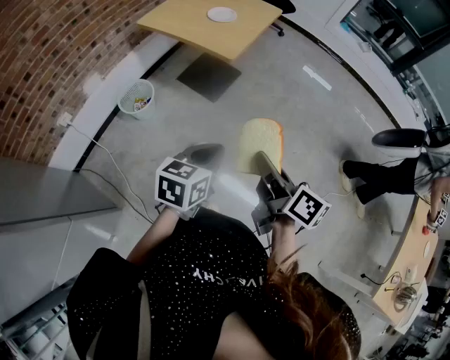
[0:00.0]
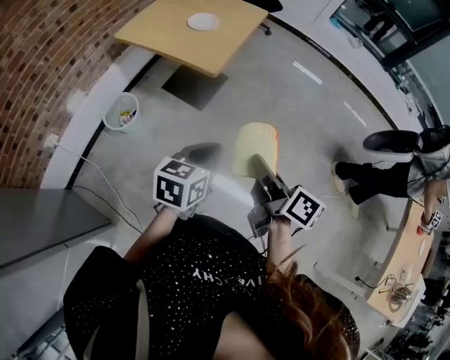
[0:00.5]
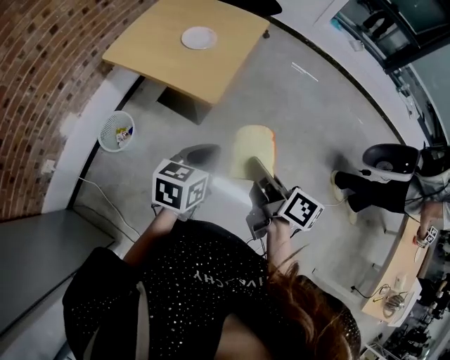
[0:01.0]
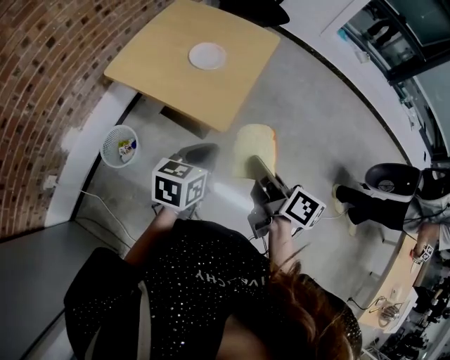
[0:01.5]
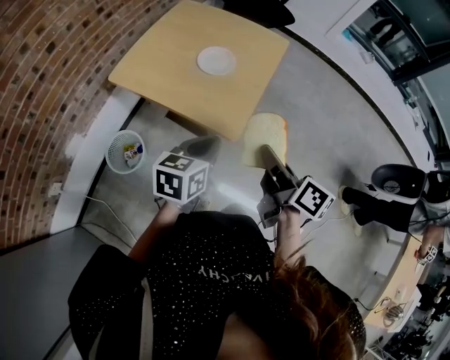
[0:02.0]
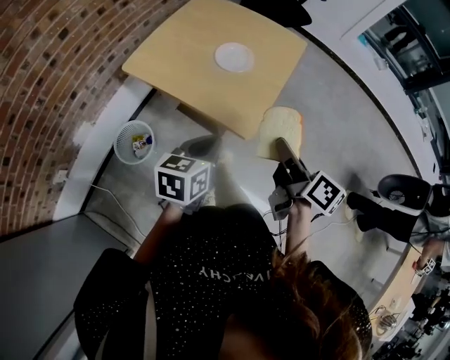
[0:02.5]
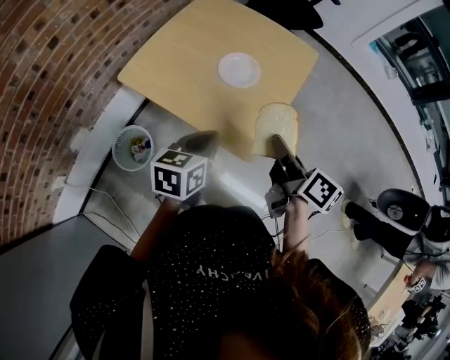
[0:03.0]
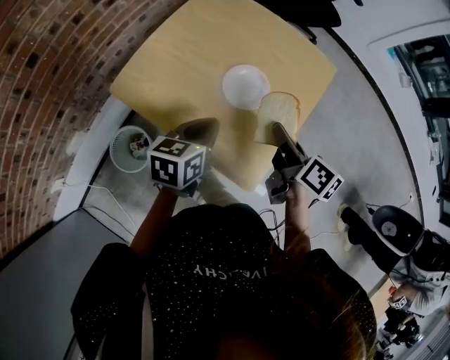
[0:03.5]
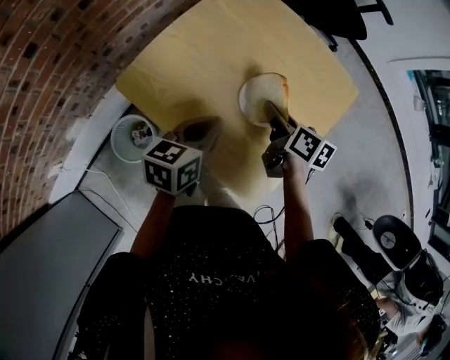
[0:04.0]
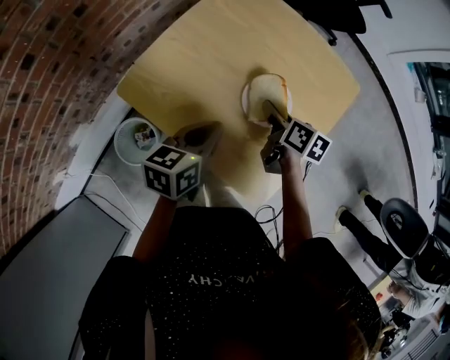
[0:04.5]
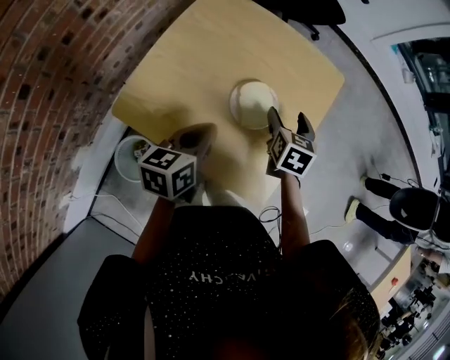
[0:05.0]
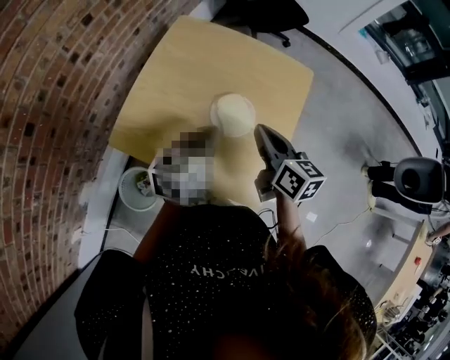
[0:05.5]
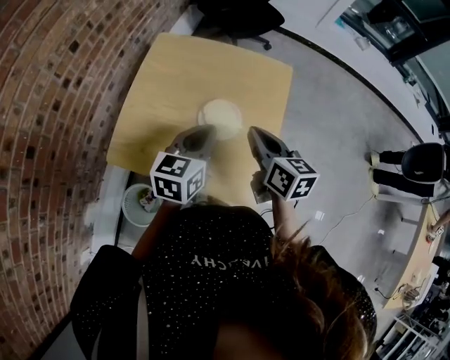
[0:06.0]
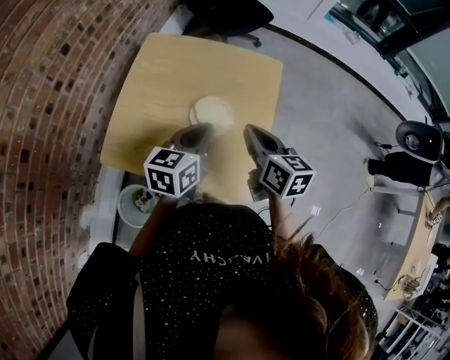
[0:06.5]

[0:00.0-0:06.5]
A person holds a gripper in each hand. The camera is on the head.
0.0 to 2.0 s: Both grippers are carried forward, roughly 40 cm.
2.0 to 4.5 s: The right gripper moves forward, downward and to the left, some 50 cm, and turns by roughly 30 degrees. The left gripper heads forward and to the left, covering roughly 30 cm.
4.5 to 6.5 s: The right gripper moves upward and to the right, about 20 cm, changes its angle by approximately 30 degrees, and opens, then closes once more. Meanwhile the left gripper moves to the right, upward and forward, about 20 cm, and rotates approximately 20 degrees.

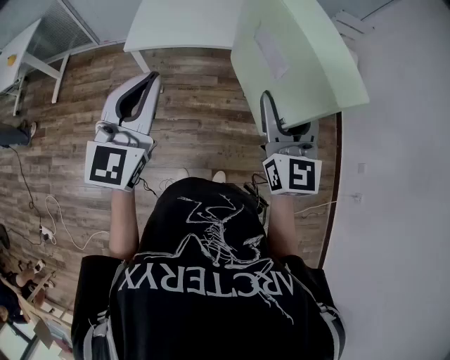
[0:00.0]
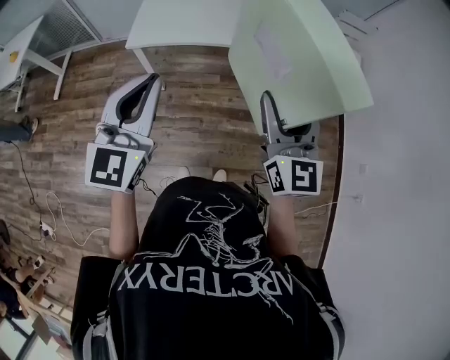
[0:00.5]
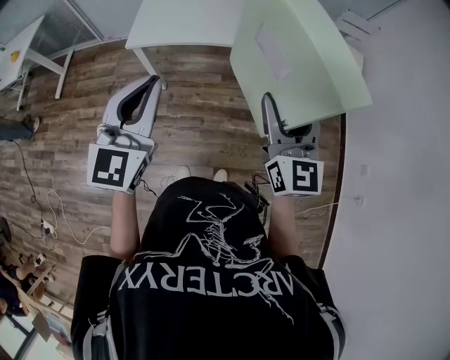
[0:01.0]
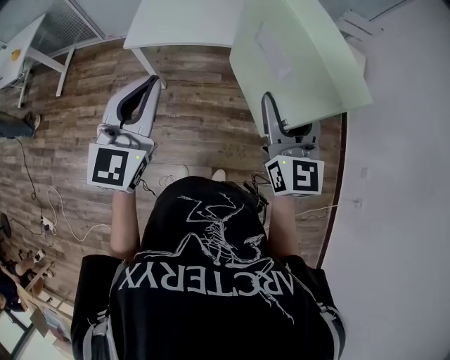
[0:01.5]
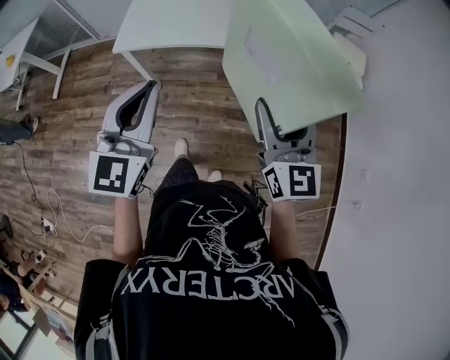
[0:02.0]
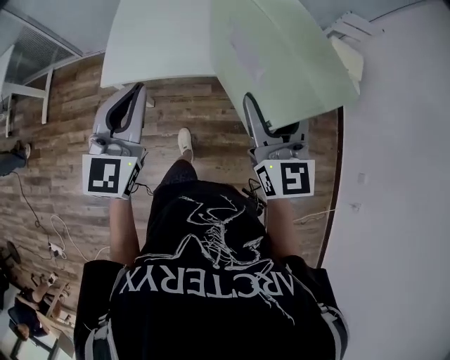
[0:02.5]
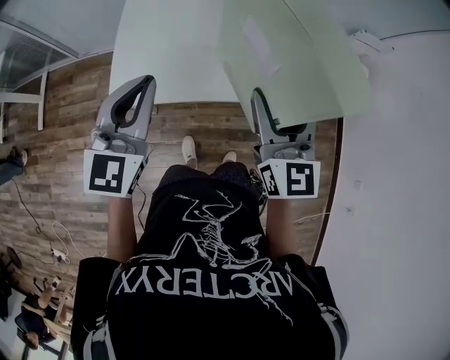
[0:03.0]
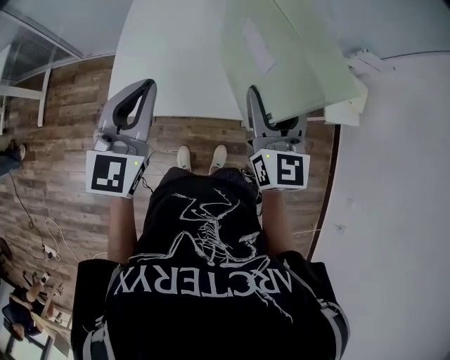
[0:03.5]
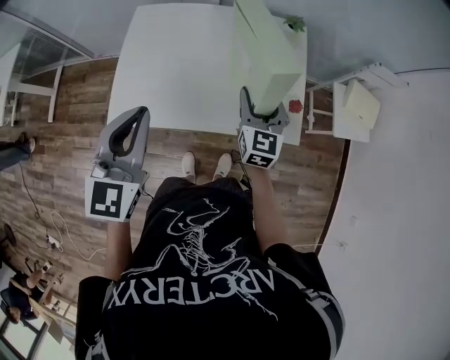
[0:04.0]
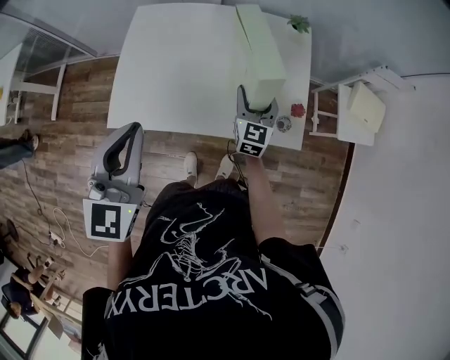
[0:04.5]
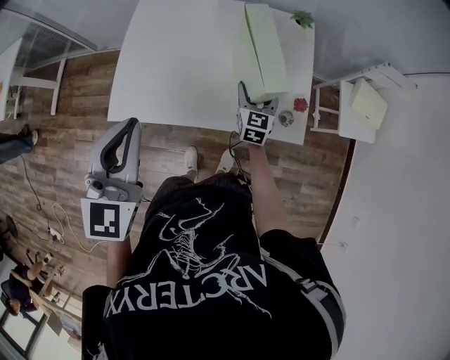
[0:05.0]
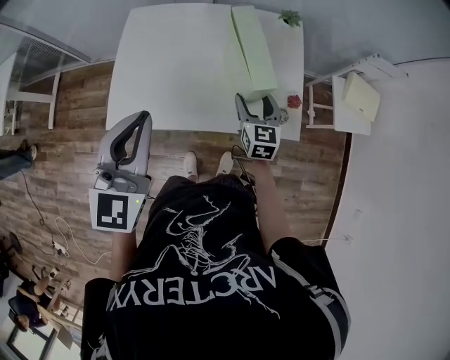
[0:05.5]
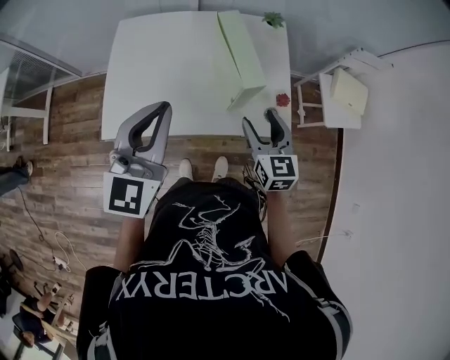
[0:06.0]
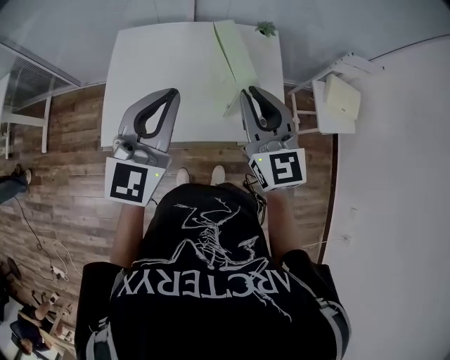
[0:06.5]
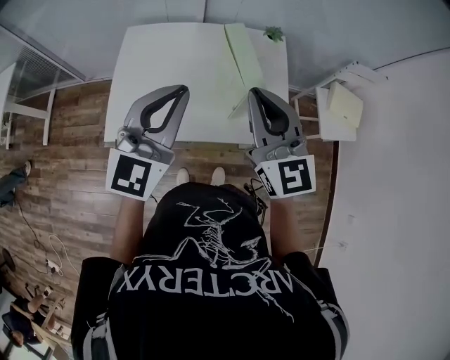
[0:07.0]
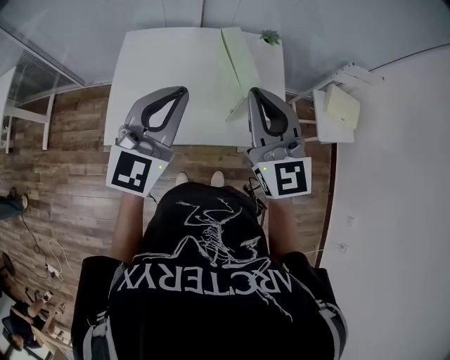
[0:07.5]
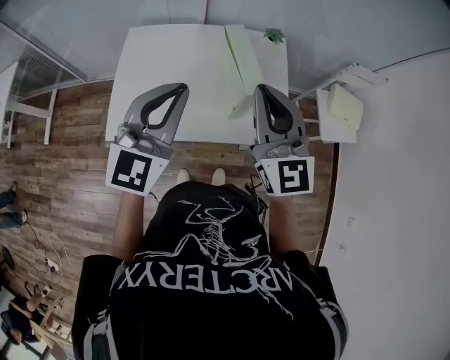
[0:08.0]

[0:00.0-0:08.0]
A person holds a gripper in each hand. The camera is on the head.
0.0 to 2.0 s: Both grippers move to the right, about 5 cm.
2.0 to 4.0 s: The two grippers go roughly 40 cm forward.
4.0 to 6.0 s: The right gripper is displaced backward by about 10 cm, and reaches approximately 15 cm downward, then returns; the left gripper heads to the right, covering approximately 5 cm.
6.0 to 8.0 s: The right gripper shifts roughly 20 cm upward, turns by roughly 30 degrees, and closes.

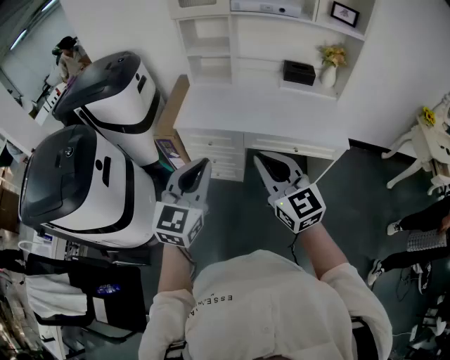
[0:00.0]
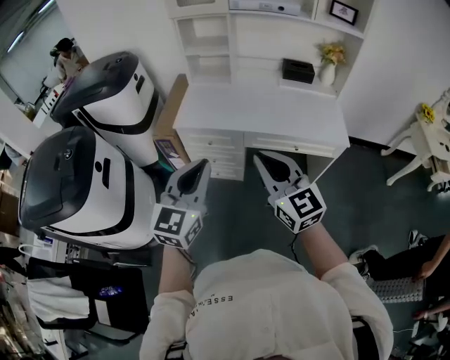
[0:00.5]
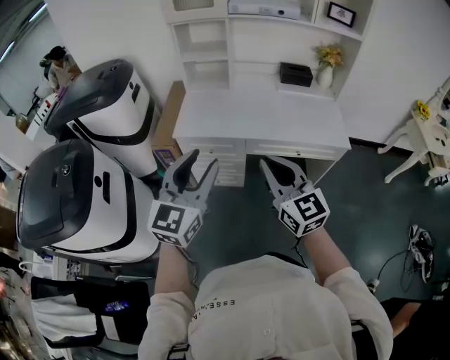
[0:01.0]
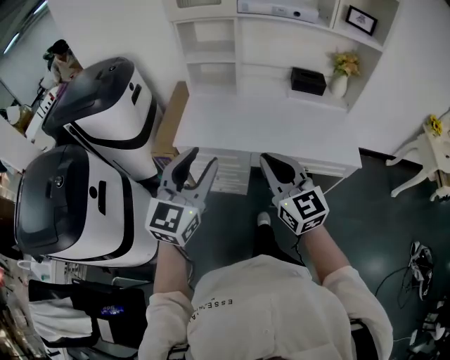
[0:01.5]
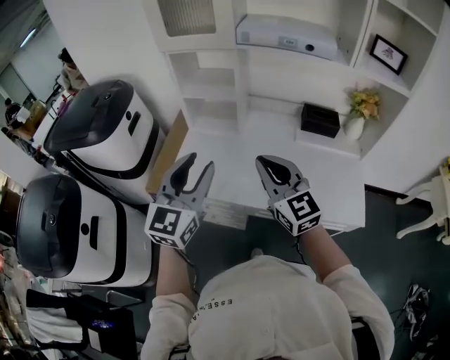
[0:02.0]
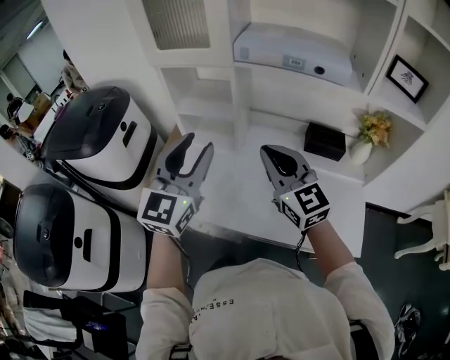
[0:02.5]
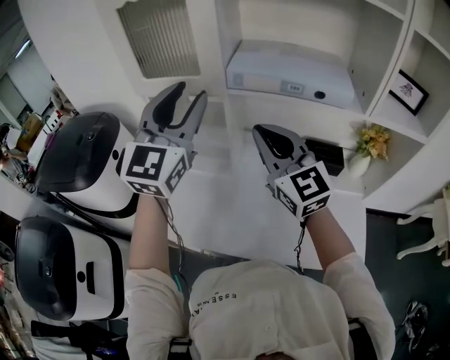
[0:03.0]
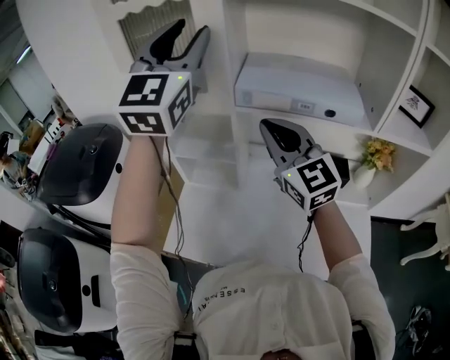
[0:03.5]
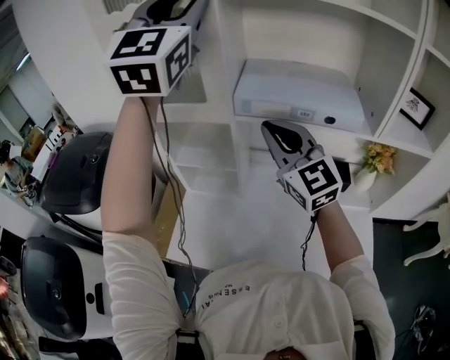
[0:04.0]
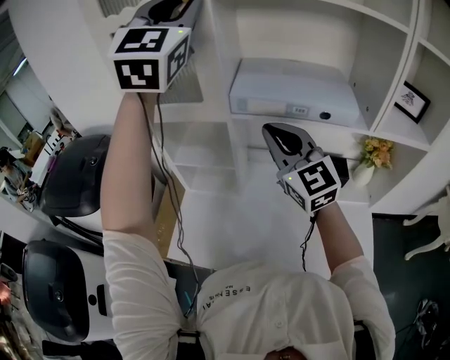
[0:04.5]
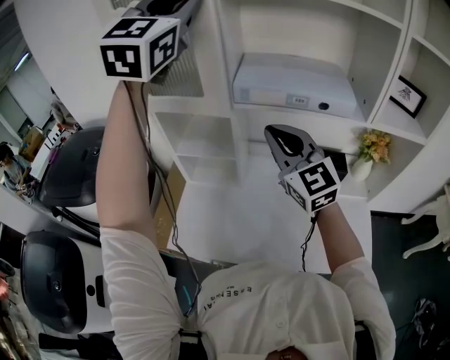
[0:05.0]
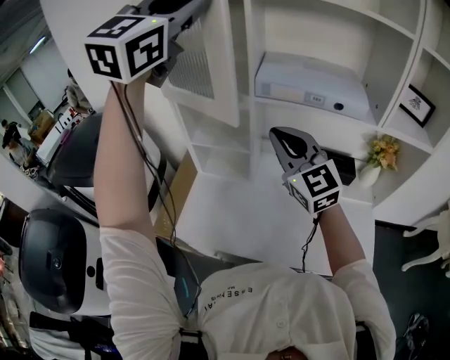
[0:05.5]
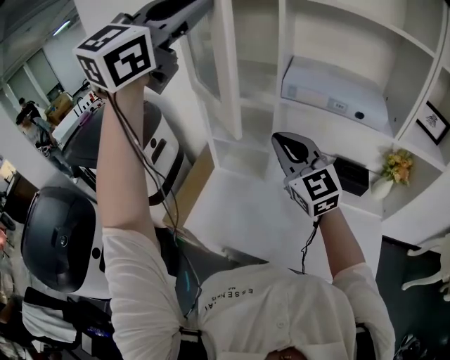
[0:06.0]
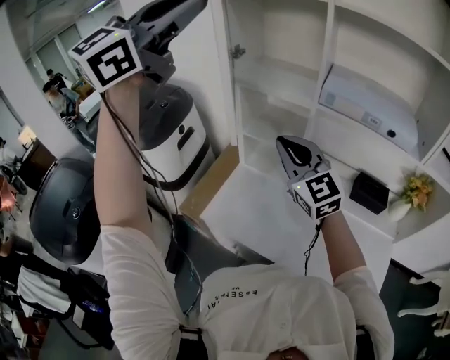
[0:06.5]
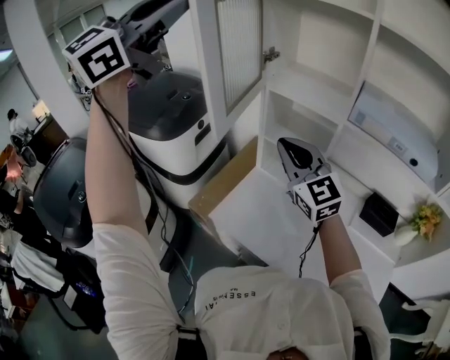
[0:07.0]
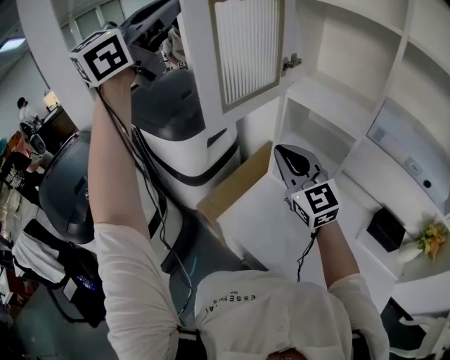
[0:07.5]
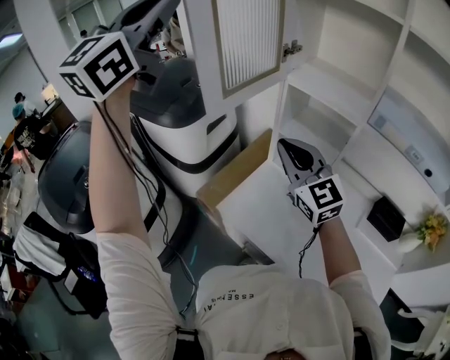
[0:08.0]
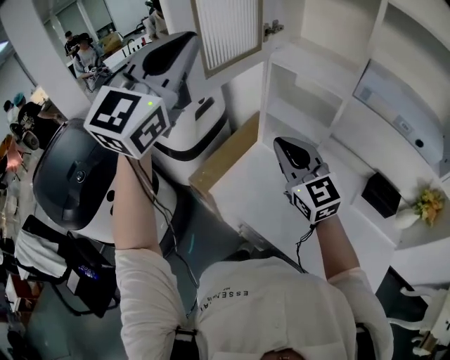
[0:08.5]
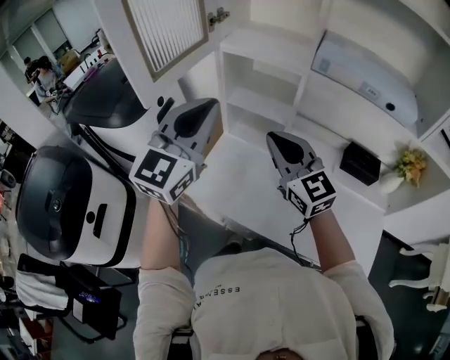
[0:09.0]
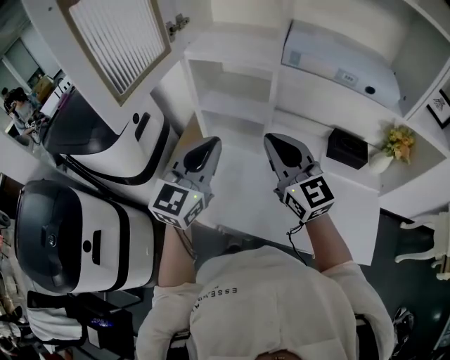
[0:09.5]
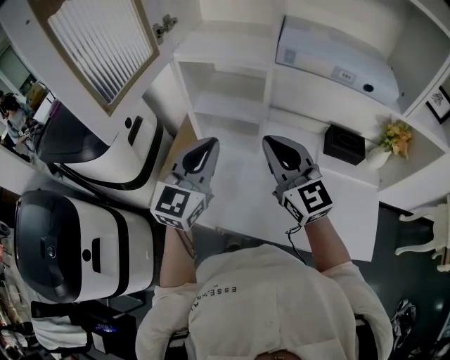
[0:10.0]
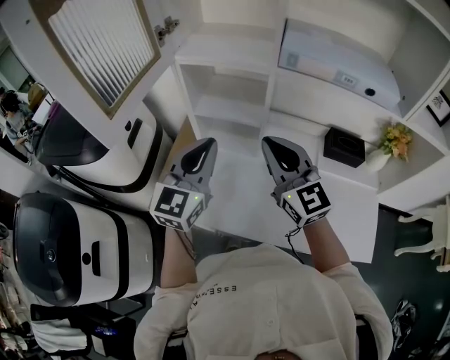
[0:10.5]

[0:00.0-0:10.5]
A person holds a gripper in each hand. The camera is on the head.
0.0 to 2.0 s: Both grippers travel together forward, approximately 35 cm. The left gripper opens up.
2.0 to 4.0 s: The right gripper moves forward and upward, some 35 cm, while the left gripper shifts roughly 50 cm upward and forward, and changes its angle by approximately 30 degrees.
4.0 to 6.5 s: Both grippers move to the left and backward, roughly 20 cm.
6.5 to 8.5 s: The right gripper moves to the left and downward, about 10 cm; the left gripper shifts approximately 15 cm downward and to the left, and turns by approximately 30 degrees.
8.5 to 10.5 s: The right gripper travels to the right by about 15 cm, and swivels roughly 20 degrees. The left gripper heads downward and to the right, covering roughly 30 cm, and turns by about 30 degrees.

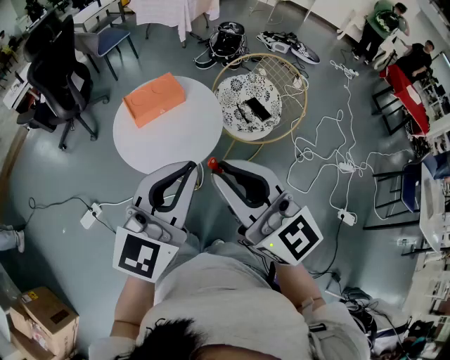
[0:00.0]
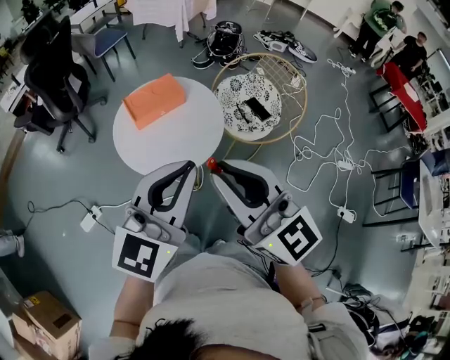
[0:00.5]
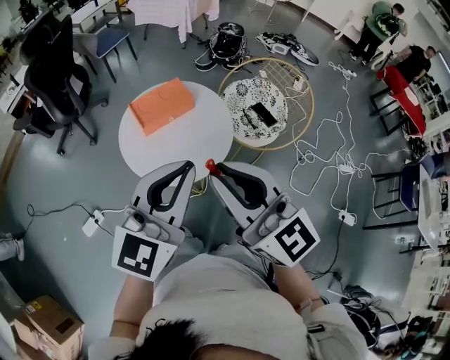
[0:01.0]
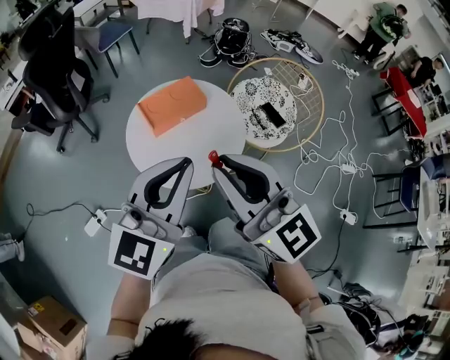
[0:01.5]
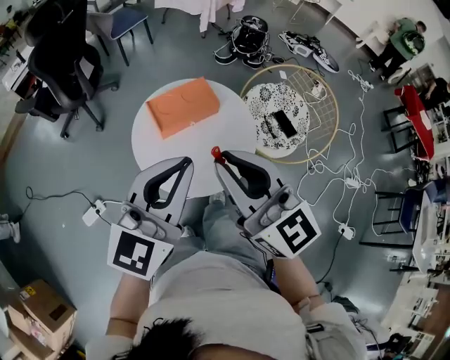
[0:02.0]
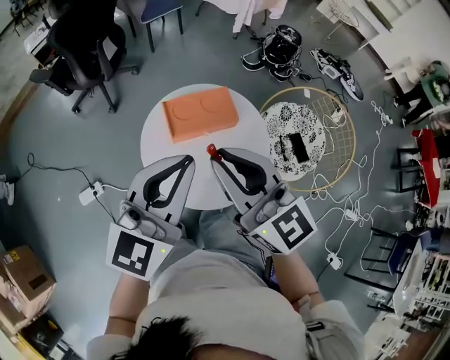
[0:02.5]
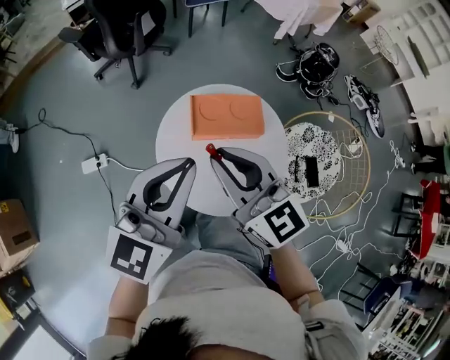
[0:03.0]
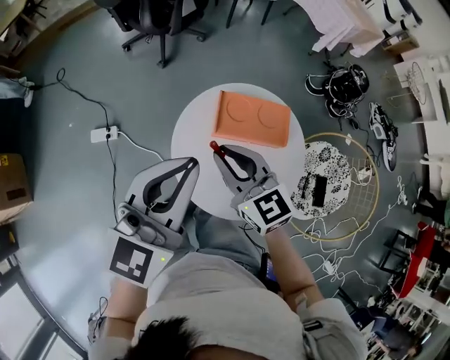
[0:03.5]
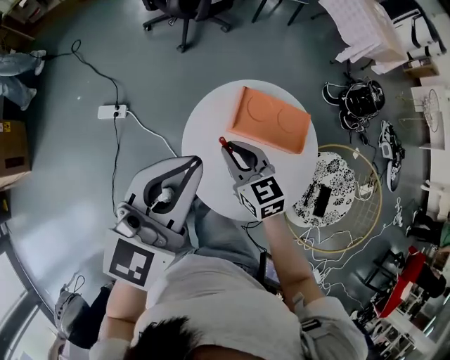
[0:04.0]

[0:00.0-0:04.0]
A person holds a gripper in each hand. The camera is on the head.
0.0 to 2.0 s: The two grippers go some 20 cm forward and to the left.
2.0 to 4.0 s: The left gripper changes place by approximately 15 cm, and changes its angle by approximately 40 degrees; the right gripper moves downward, roughly 25 cm, and tilts its fingers approximately 30 degrees downward.
